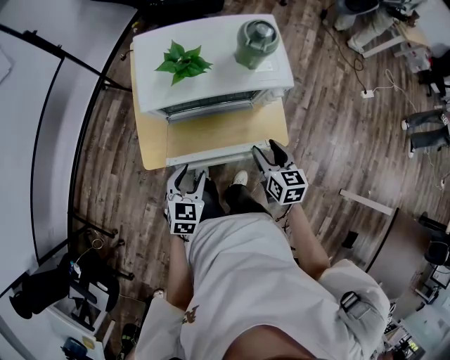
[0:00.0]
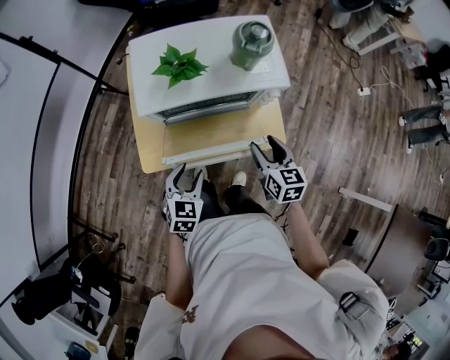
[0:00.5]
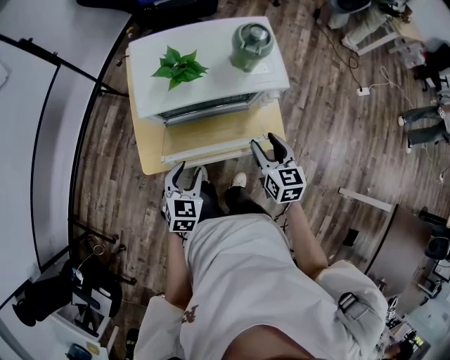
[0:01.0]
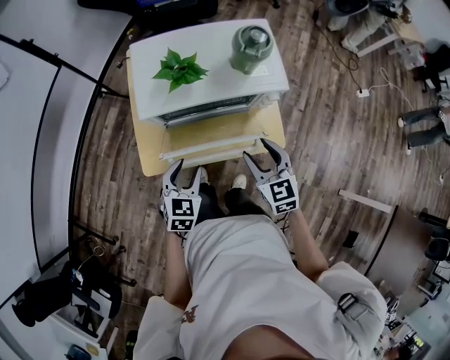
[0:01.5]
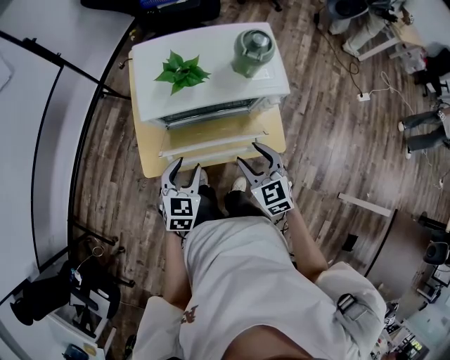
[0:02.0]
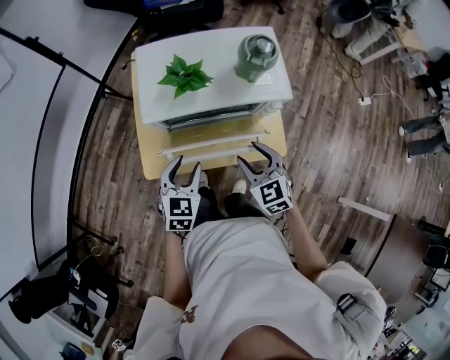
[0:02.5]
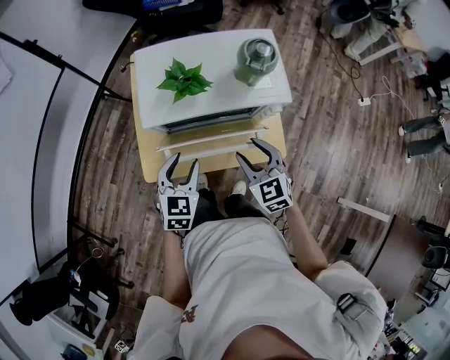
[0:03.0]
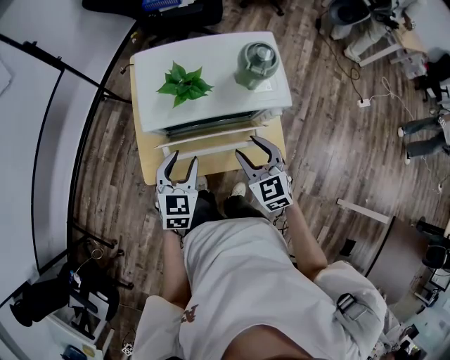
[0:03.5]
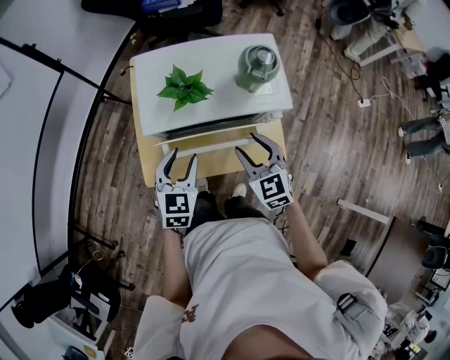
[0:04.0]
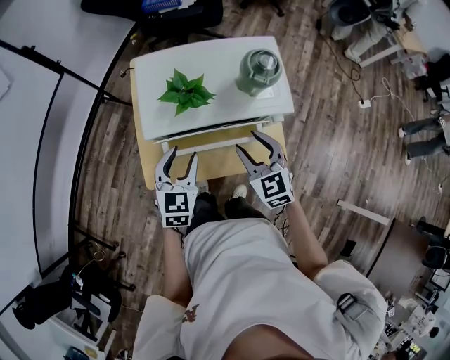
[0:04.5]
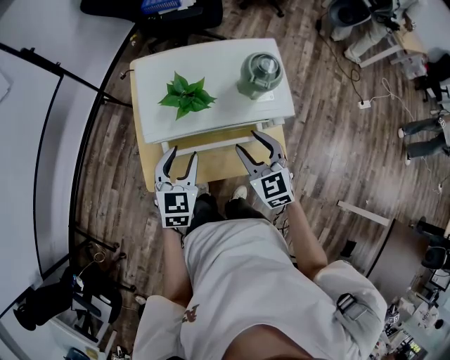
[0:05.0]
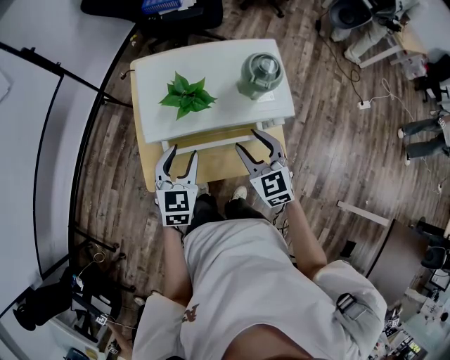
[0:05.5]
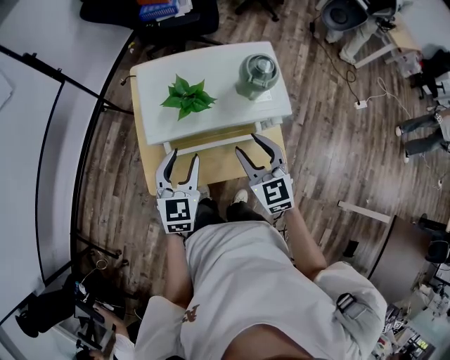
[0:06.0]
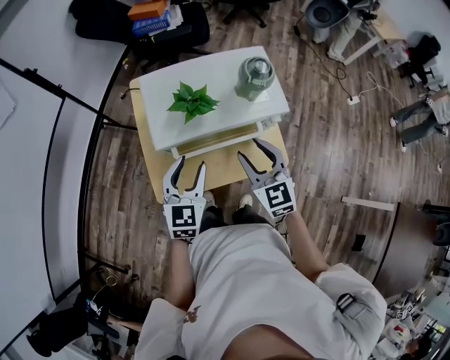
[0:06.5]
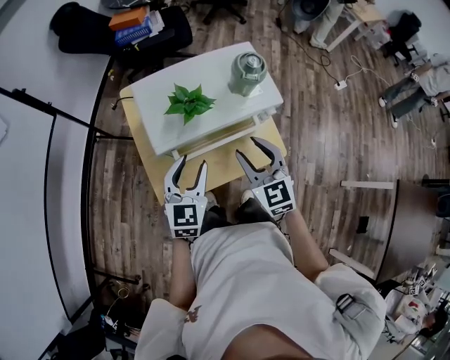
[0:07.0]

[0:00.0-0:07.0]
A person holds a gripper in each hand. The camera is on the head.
0:00.0 to 0:02.0: The right gripper heads to the left, covering about 5 cm, and swivels about 30 degrees; the left gripper ends up approximately 5 cm from where it was.
0:02.0 to 0:03.5: Both grippers travel together forward, about 5 cm.
0:03.5 to 0:05.0: The grippers make only small movements.
0:05.0 to 0:07.0: The right gripper is displaced upward by some 5 cm.

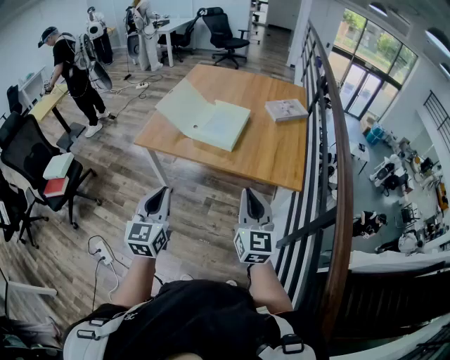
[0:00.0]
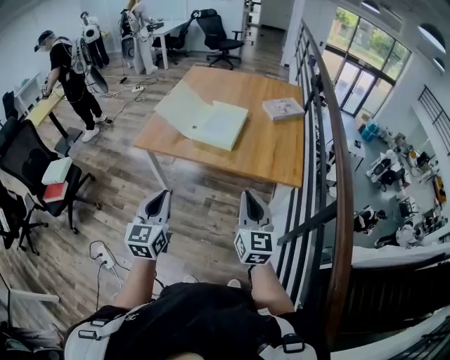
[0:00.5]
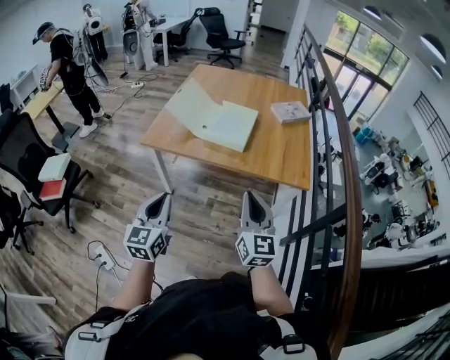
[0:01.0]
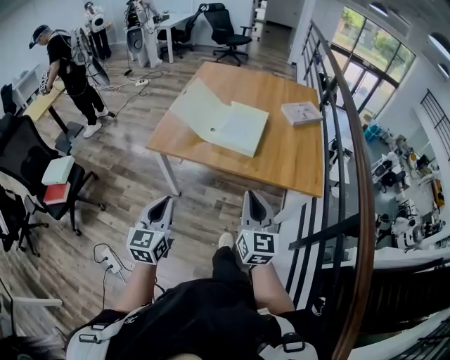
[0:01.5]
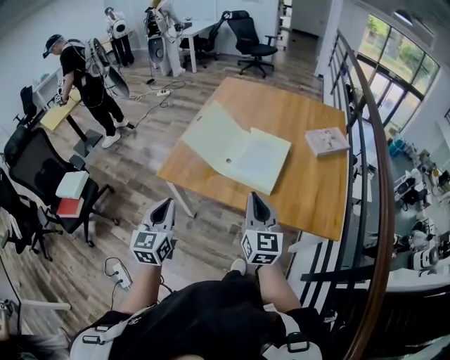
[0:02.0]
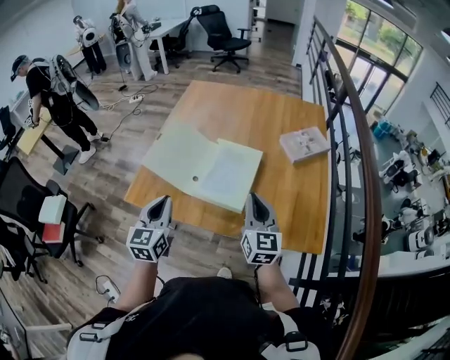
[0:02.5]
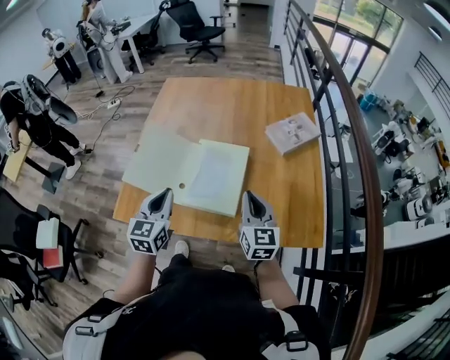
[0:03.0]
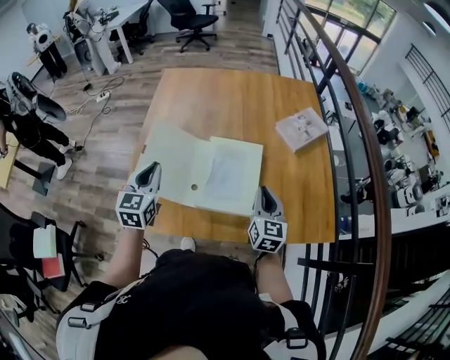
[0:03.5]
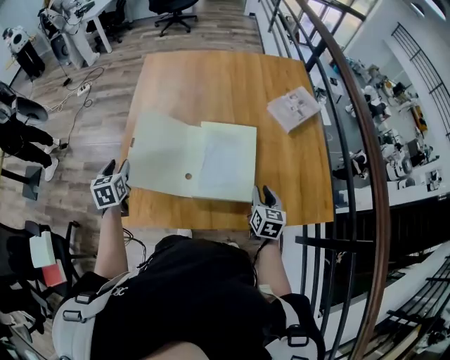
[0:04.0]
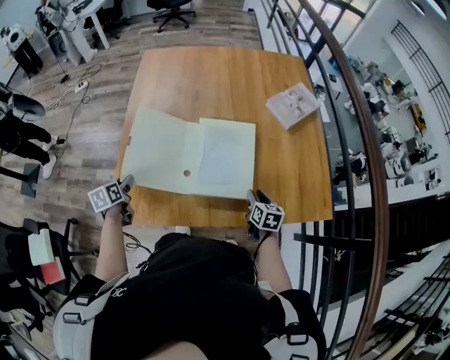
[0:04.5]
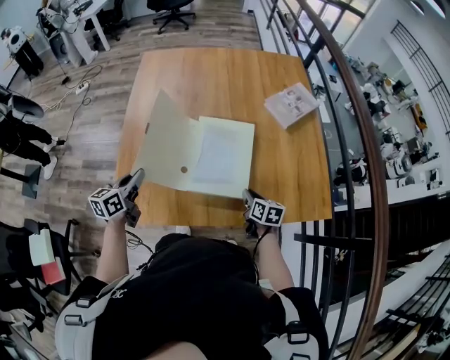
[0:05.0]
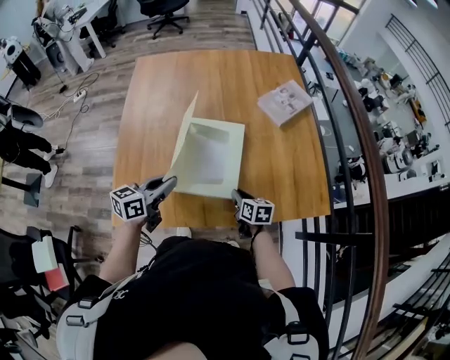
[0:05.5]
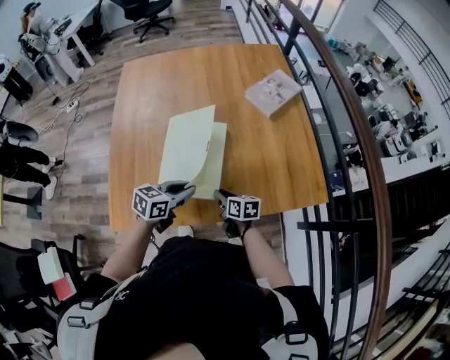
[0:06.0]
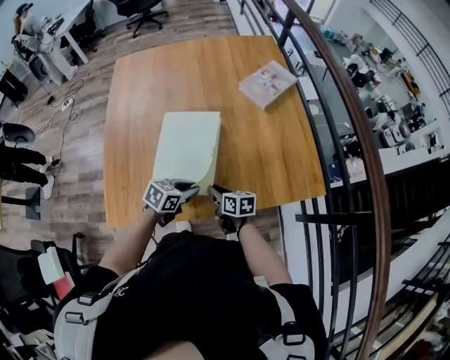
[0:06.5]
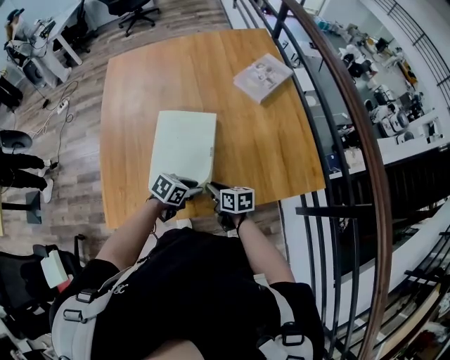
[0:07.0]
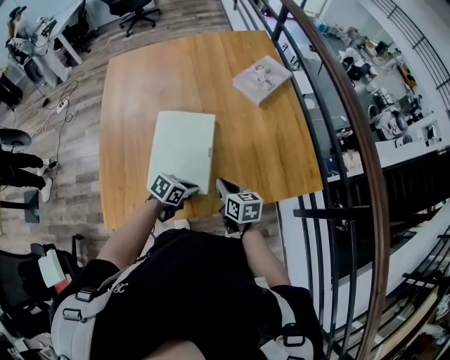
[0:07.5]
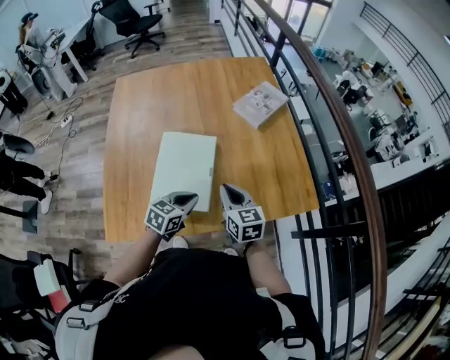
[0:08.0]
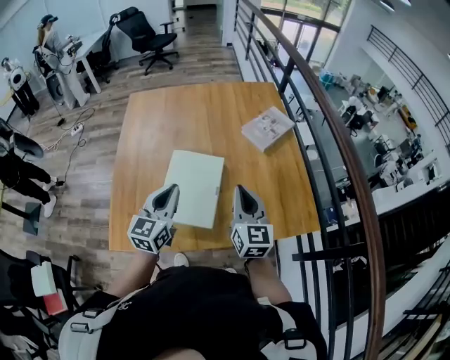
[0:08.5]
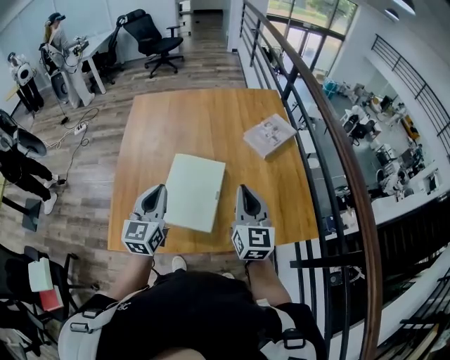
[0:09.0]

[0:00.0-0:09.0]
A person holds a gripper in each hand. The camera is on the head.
0:00.0 to 0:02.0: The grippers both shift forward and to the left by roughly 25 cm.
0:02.0 to 0:04.5: The right gripper heads downward and forward, covering approximately 35 cm, angles its fingers downward, by some 40 degrees, and opens up. The left gripper heads forward, downward and to the left, covering approximately 40 cm, tips its fingers downward by approximately 30 degrees, and opens its fingers.
0:04.5 to 0:07.0: The left gripper shifts roughly 35 cm to the right, swivels about 70 degrees, and closes, then opens again, while the right gripper is displaced to the left by approximately 10 cm, and changes its angle by approximately 30 degrees.
0:07.0 to 0:09.0: The left gripper shifts approximately 30 cm upward and to the left, tips its fingers upward by roughly 40 degrees, and closes. The right gripper moves upward, some 30 cm, and tips its fingers upward by some 30 degrees.

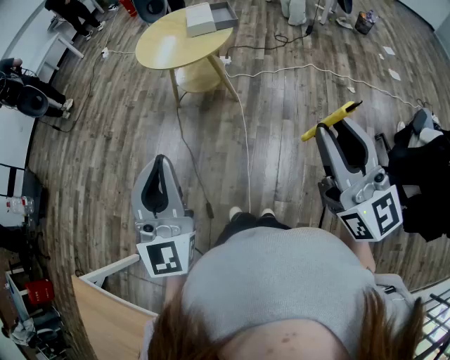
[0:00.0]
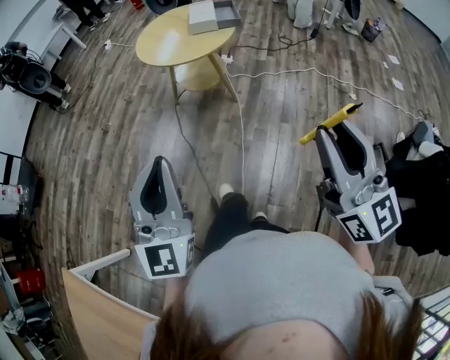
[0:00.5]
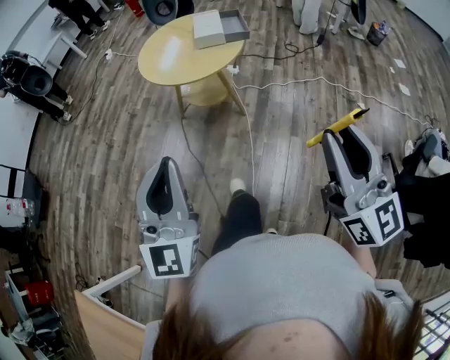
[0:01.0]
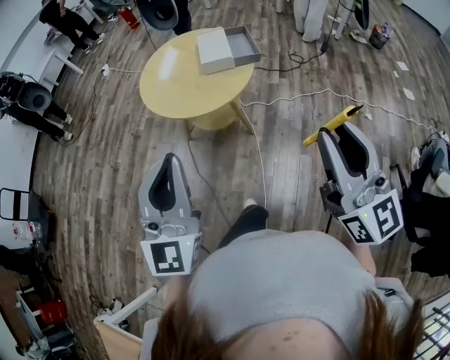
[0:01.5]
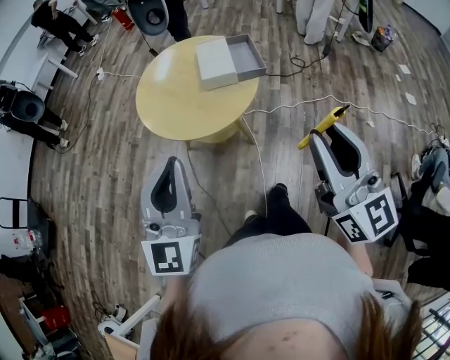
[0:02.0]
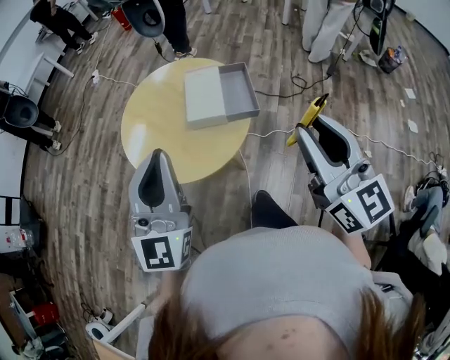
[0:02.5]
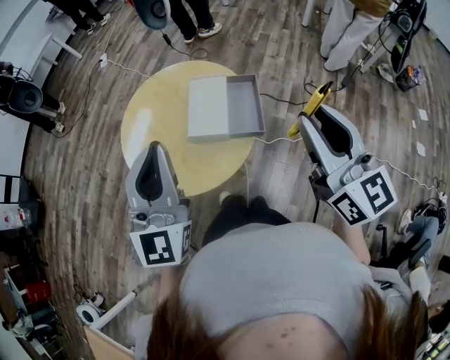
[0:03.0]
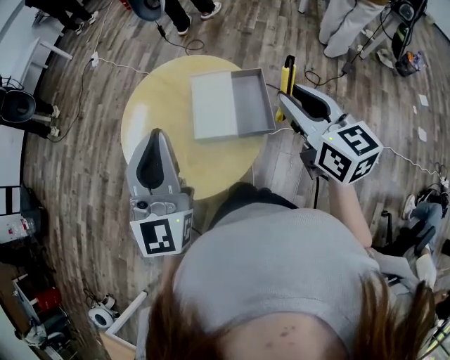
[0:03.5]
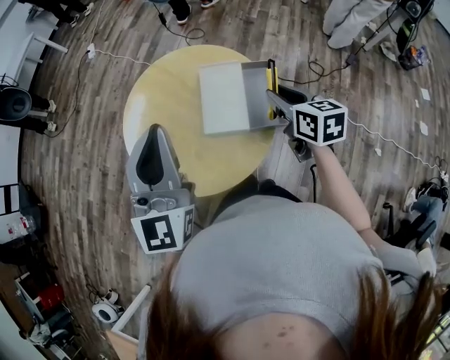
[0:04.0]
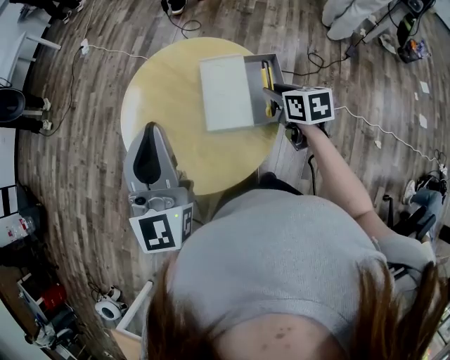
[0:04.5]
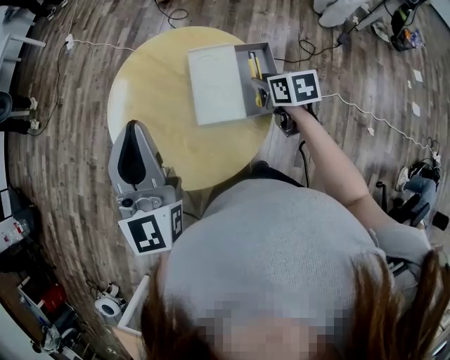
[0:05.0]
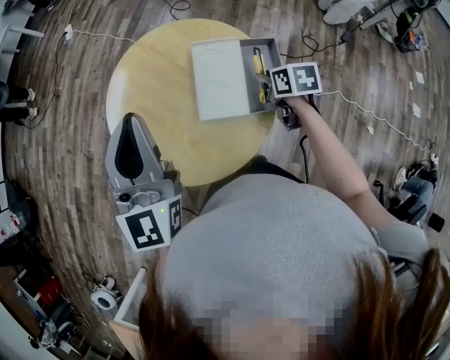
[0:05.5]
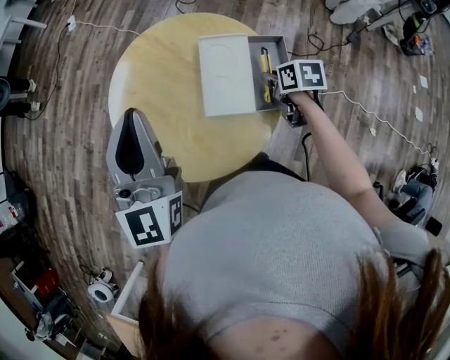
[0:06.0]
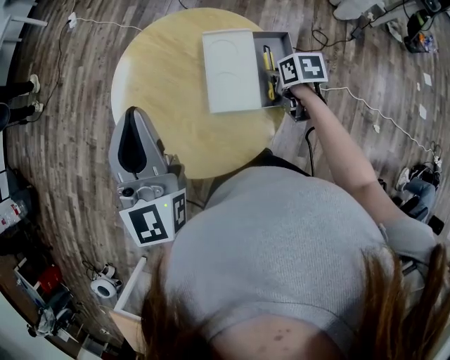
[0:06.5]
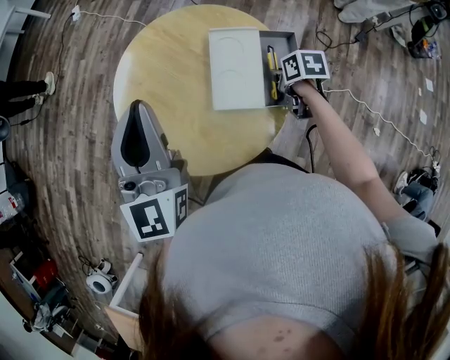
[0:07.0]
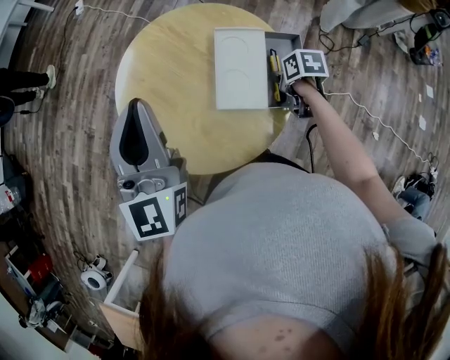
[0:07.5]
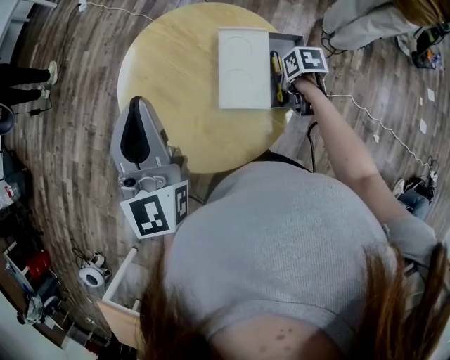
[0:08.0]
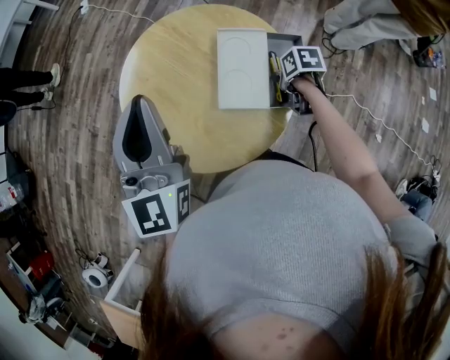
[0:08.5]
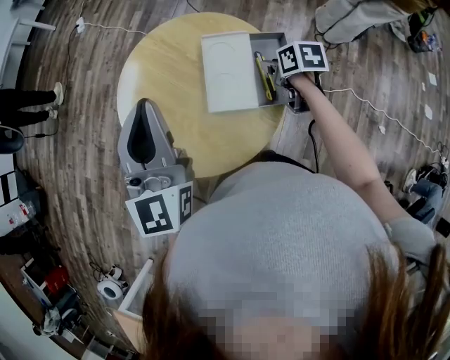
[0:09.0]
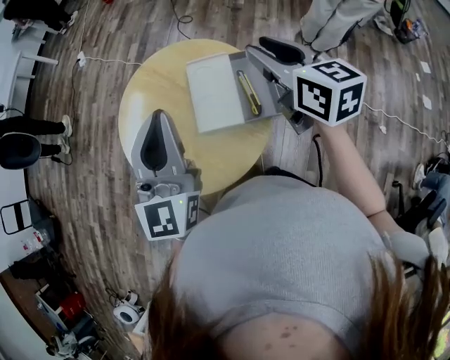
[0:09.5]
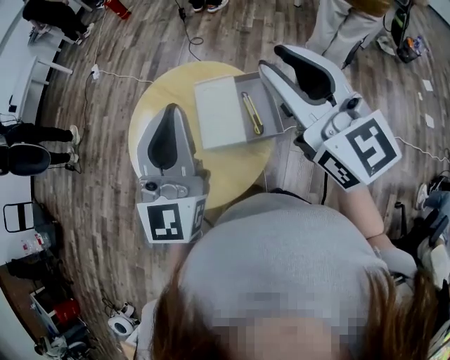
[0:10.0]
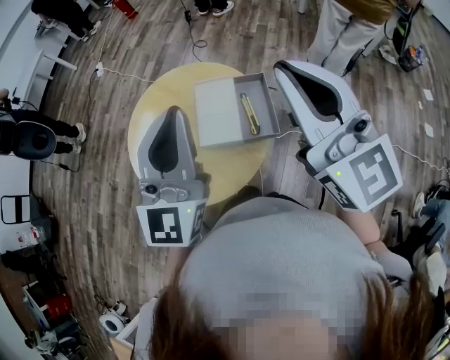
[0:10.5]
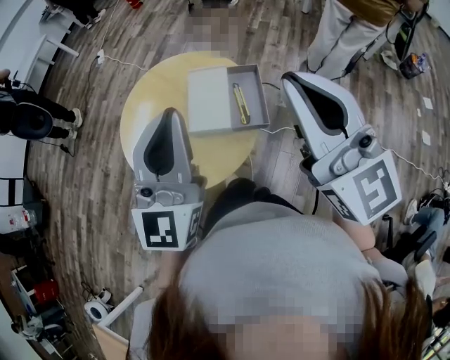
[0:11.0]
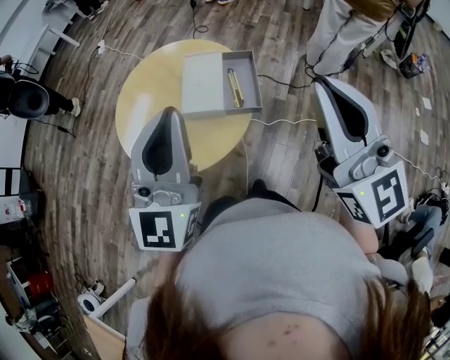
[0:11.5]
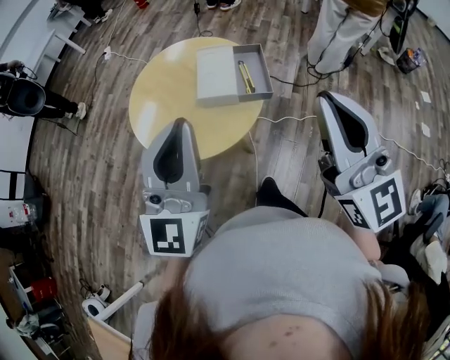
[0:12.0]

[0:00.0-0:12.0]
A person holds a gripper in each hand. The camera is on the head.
0:00.0 to 0:02.0: The grippers both shift forward by roughly 35 cm.
0:02.0 to 0:04.0: The right gripper shifts approximately 50 cm forward and downward, and tips its fingers downward by approximately 40 degrees. The left gripper goes roughly 30 cm forward.
0:04.0 to 0:06.0: The right gripper travels downward by approximately 15 cm, and rotates some 30 degrees. Meanwhile the left gripper moves forward, about 5 cm.
0:06.0 to 0:08.0: The right gripper ends up approximately 5 cm from where it was.
0:08.0 to 0:10.0: The right gripper shifts some 40 cm upward, and tips its fingers upward by approximately 70 degrees. The left gripper shifts by roughly 15 cm, and rotates roughly 20 degrees.
0:10.0 to 0:12.0: The grippers both shift backward by roughly 20 cm. The right gripper closes its fingers.
